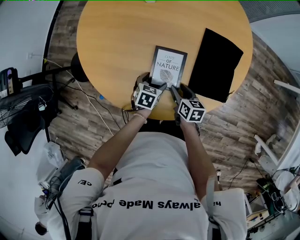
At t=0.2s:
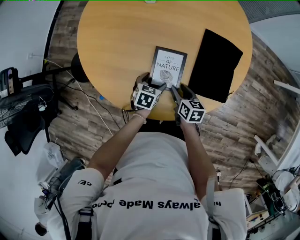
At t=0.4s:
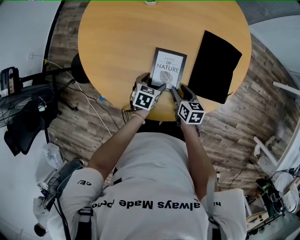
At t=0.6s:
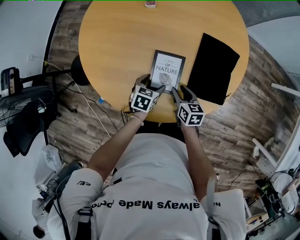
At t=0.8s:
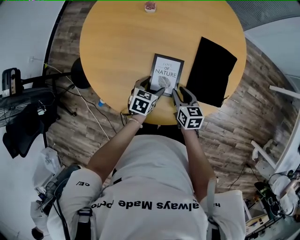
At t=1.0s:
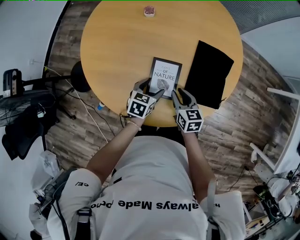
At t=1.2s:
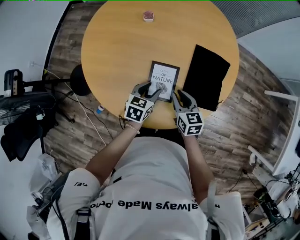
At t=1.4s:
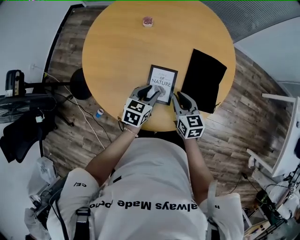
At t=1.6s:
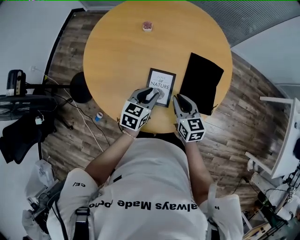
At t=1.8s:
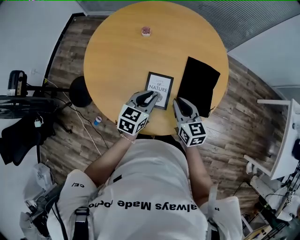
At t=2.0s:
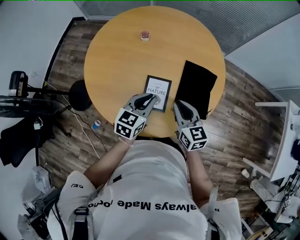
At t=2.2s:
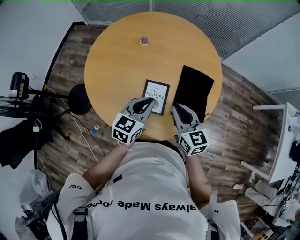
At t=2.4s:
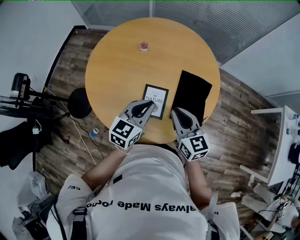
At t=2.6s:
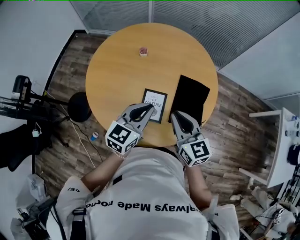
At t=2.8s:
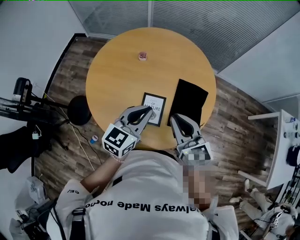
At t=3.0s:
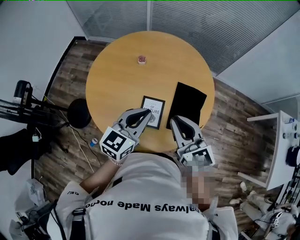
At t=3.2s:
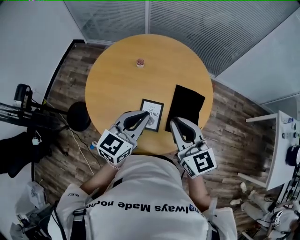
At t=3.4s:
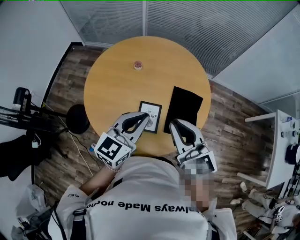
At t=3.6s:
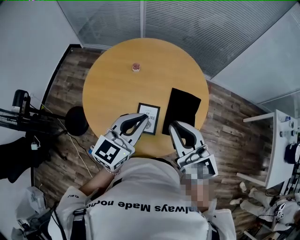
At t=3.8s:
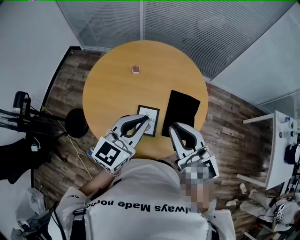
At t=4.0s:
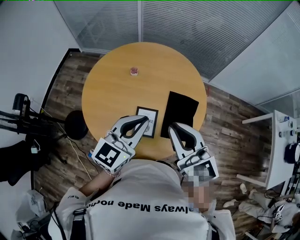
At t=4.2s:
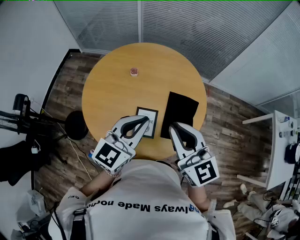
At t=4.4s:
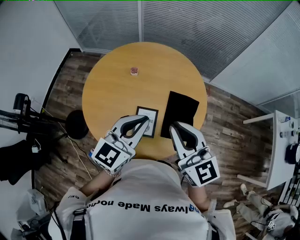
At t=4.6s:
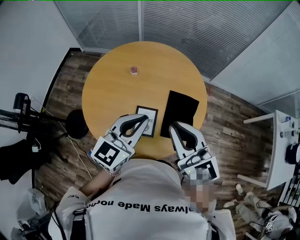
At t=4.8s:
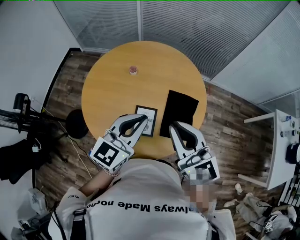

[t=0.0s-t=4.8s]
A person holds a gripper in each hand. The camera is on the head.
t=0.0s to t=1.6s: The grippers both shift upward by roughly 20 cm. The right gripper turns by approximately 30 degrees, and closes its fingers; the left gripper changes its angle by roughly 20 degrees, and closes its fingers.
t=1.6s to t=3.2s: Both grippers travel together upward, roughly 25 cm. The right gripper swivels approximately 20 degrees. The left gripper changes its angle by some 30 degrees.
t=3.2s to t=4.8s: Both grippers move upward, about 5 cm.

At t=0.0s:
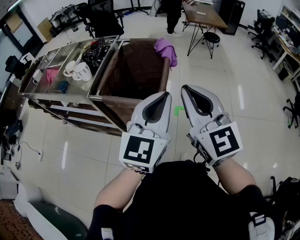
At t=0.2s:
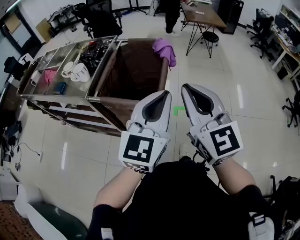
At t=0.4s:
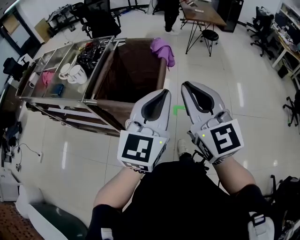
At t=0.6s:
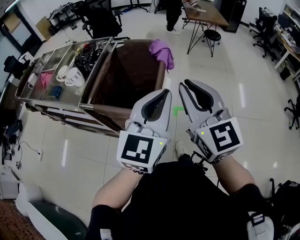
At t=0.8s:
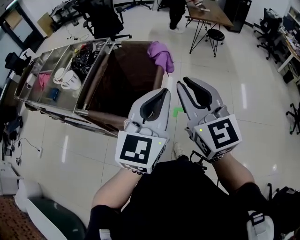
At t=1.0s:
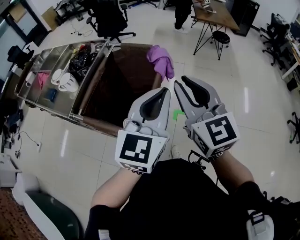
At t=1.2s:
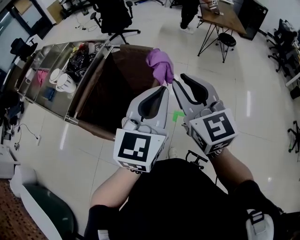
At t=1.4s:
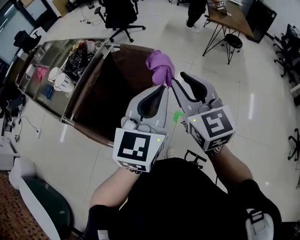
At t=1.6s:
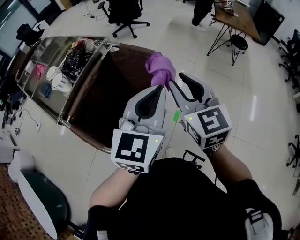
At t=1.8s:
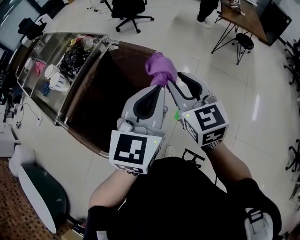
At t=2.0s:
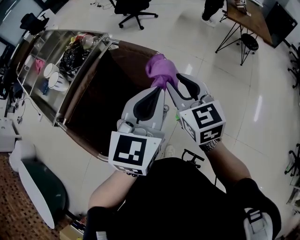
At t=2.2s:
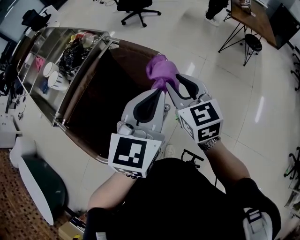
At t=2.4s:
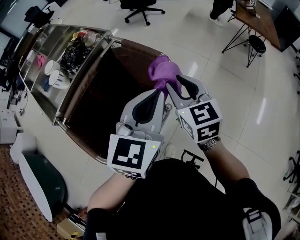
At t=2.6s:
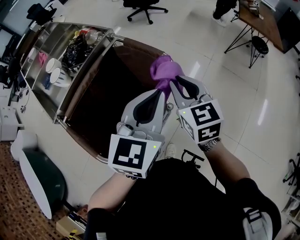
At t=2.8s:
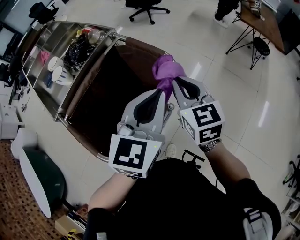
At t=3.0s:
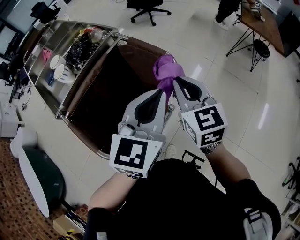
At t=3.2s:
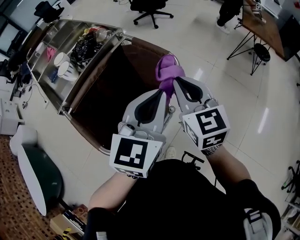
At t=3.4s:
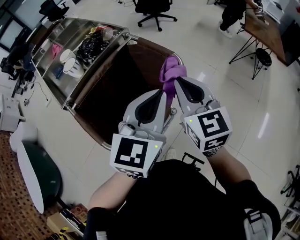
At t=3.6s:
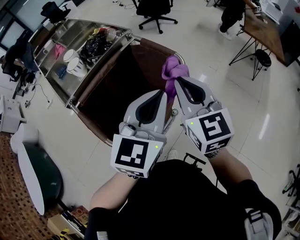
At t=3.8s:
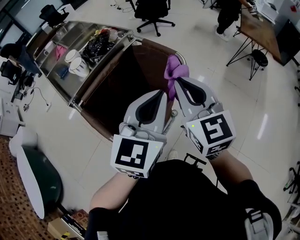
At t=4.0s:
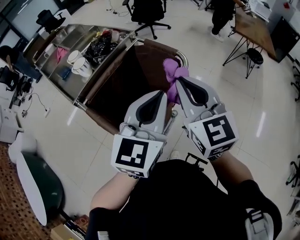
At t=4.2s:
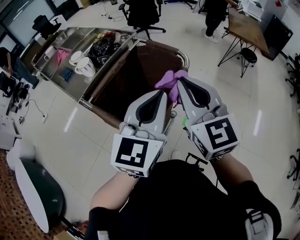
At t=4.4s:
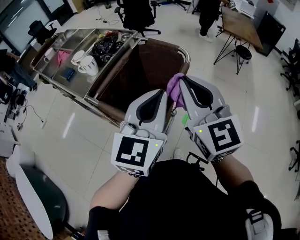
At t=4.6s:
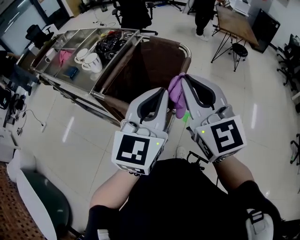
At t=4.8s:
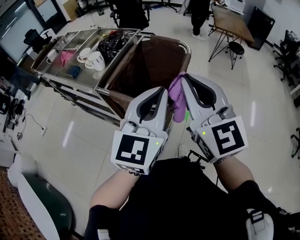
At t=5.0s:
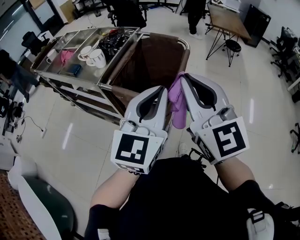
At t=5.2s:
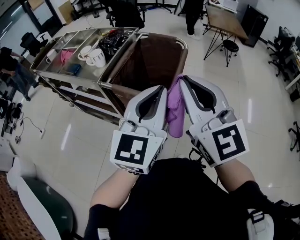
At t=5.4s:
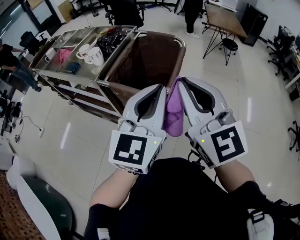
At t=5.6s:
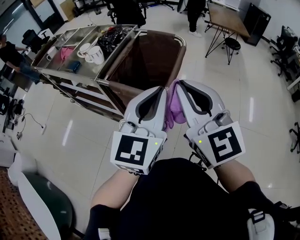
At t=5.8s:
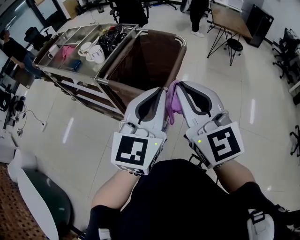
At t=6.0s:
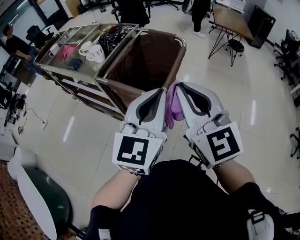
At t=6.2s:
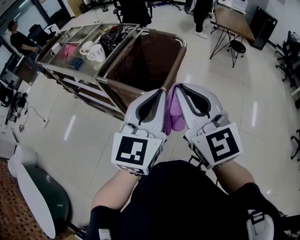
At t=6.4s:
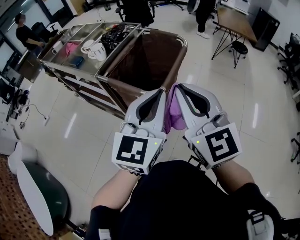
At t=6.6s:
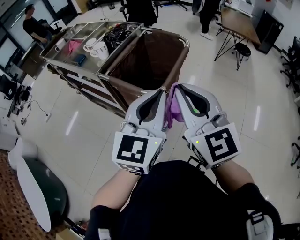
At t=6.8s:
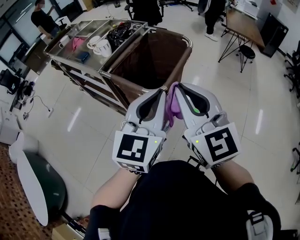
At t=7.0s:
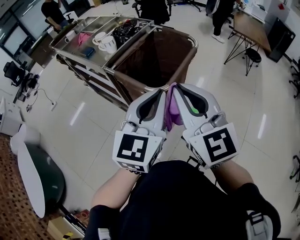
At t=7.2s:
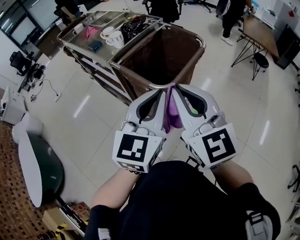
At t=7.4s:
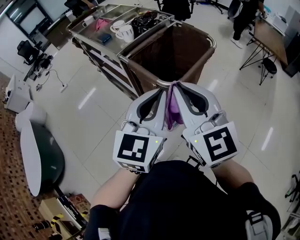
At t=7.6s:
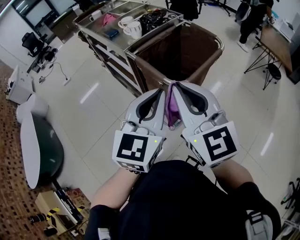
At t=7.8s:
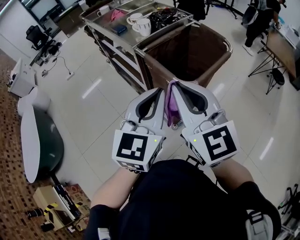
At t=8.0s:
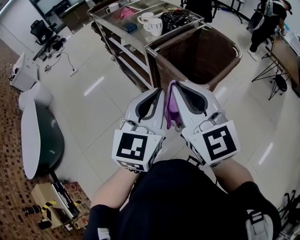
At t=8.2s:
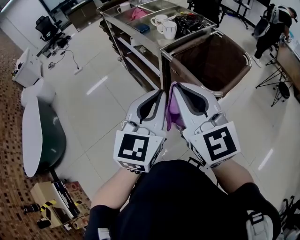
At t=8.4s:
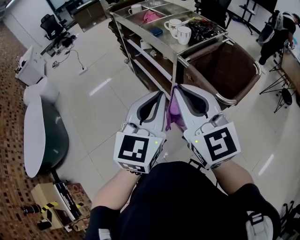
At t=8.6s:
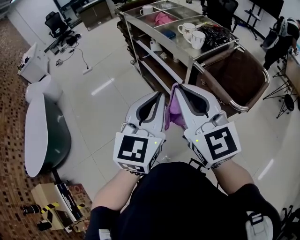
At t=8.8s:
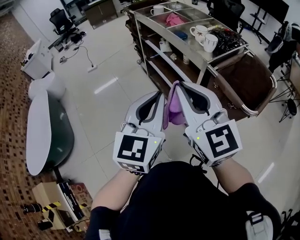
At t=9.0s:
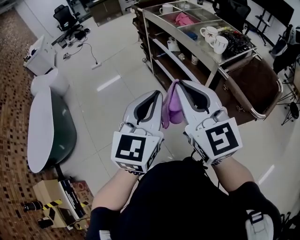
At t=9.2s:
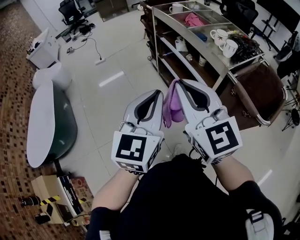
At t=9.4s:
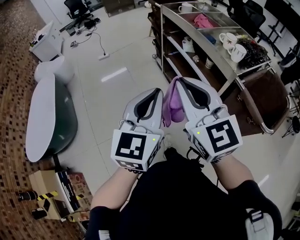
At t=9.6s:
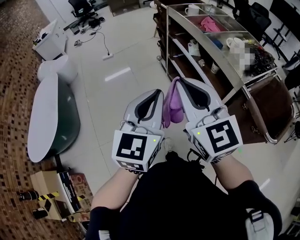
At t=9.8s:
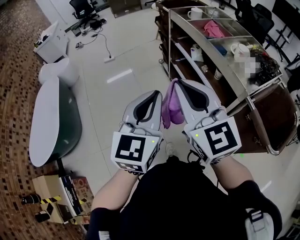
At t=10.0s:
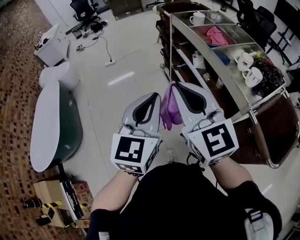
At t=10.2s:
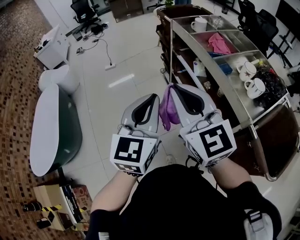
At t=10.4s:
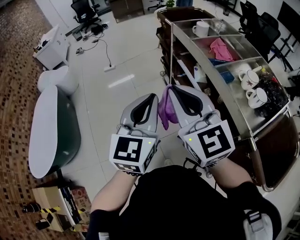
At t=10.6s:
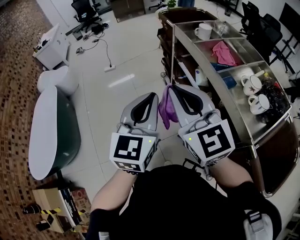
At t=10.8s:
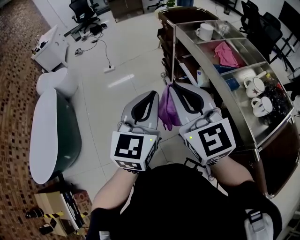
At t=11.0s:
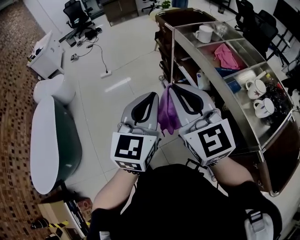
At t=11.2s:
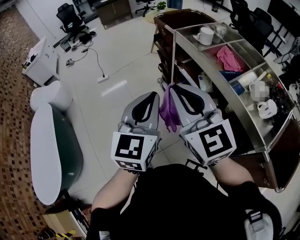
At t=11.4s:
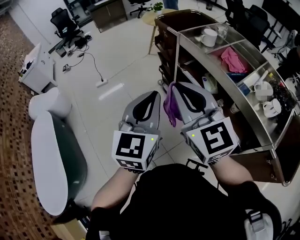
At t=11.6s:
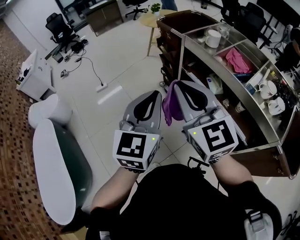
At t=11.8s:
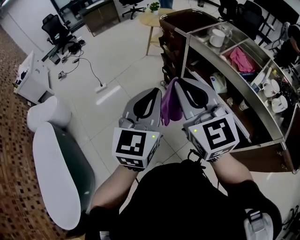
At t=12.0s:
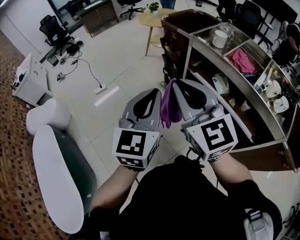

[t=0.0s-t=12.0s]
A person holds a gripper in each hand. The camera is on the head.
t=0.0s to t=1.6s: Both grippers travel together forward, some 30 cm. The right gripper opens.
t=1.6s to t=3.0s: The left gripper is displaced downward and forward by roughly 10 cm. The right gripper goes approximately 10 cm forward and downward, and closes.
t=3.0s to t=4.4s: Both grippers move backward, upward and to the left, roughly 25 cm. The left gripper rotates approximately 20 degrees.
t=4.4s to t=6.0s: The two grippers go roughly 15 cm backward.
t=6.0s to t=7.6s: The right gripper swivels approximately 30 degrees.
t=7.6s to t=9.0s: The grippers both shift to the left by roughly 35 cm.
t=9.0s to t=10.4s: Both grippers move forward, about 30 cm.
t=10.4s to t=12.0s: Both grippers travel together to the left and forward, some 30 cm. The right gripper turns by approximately 20 degrees.

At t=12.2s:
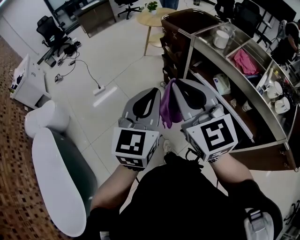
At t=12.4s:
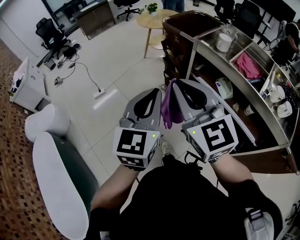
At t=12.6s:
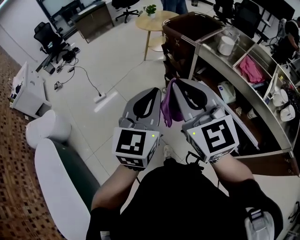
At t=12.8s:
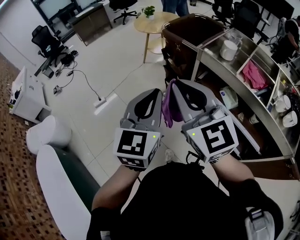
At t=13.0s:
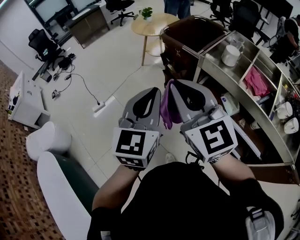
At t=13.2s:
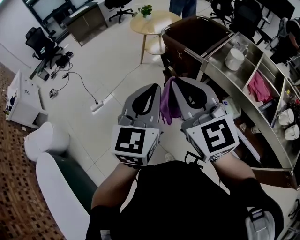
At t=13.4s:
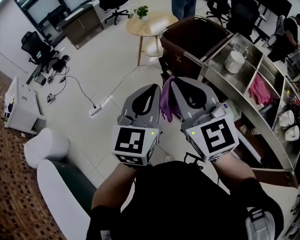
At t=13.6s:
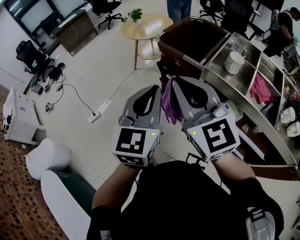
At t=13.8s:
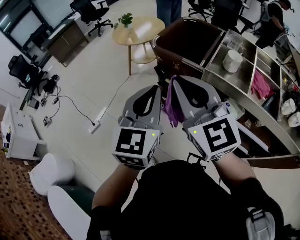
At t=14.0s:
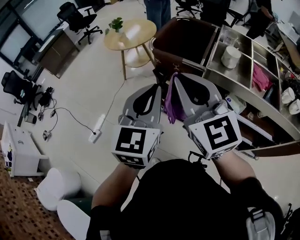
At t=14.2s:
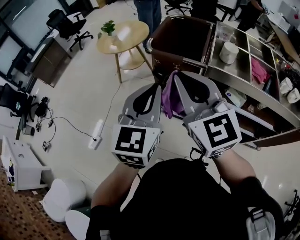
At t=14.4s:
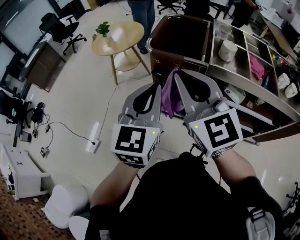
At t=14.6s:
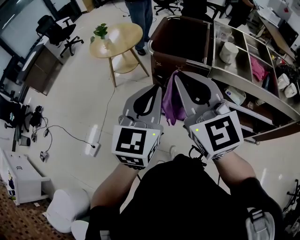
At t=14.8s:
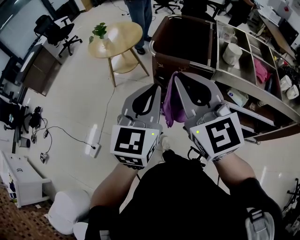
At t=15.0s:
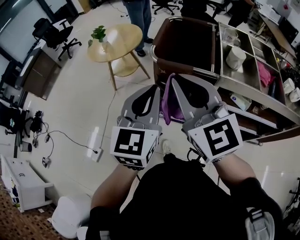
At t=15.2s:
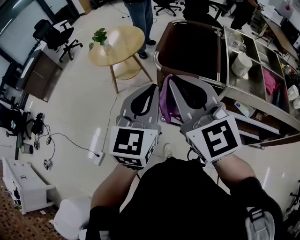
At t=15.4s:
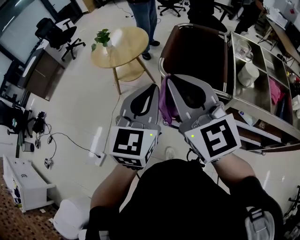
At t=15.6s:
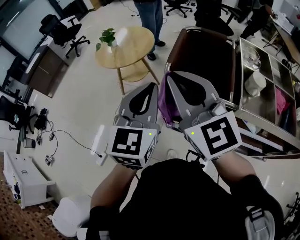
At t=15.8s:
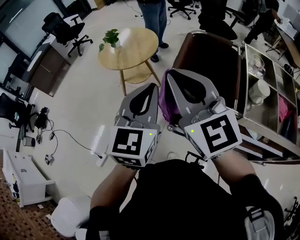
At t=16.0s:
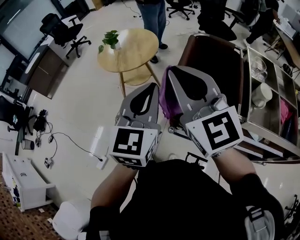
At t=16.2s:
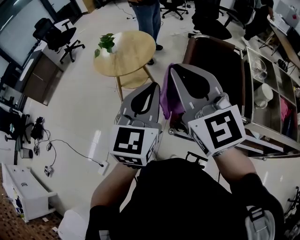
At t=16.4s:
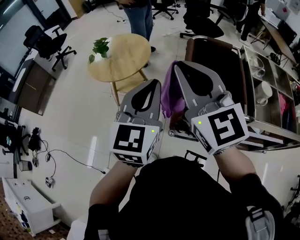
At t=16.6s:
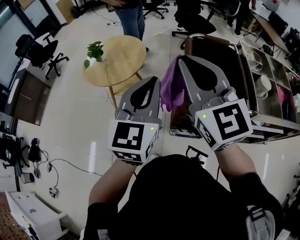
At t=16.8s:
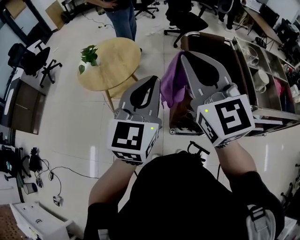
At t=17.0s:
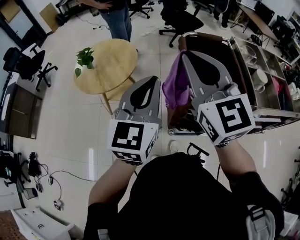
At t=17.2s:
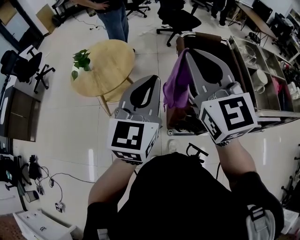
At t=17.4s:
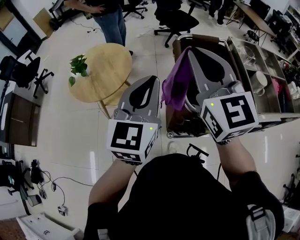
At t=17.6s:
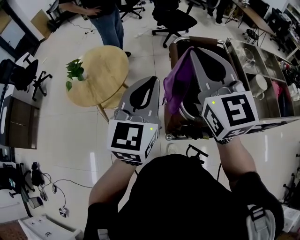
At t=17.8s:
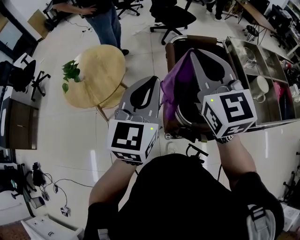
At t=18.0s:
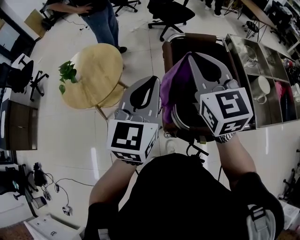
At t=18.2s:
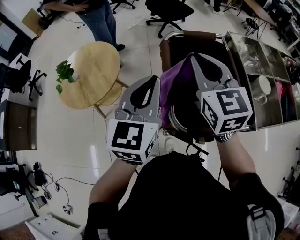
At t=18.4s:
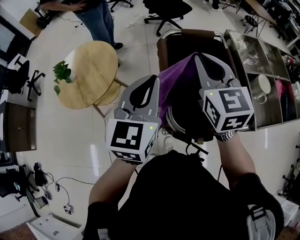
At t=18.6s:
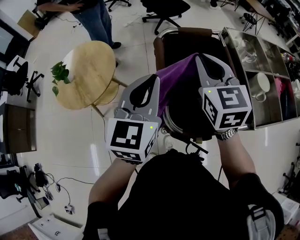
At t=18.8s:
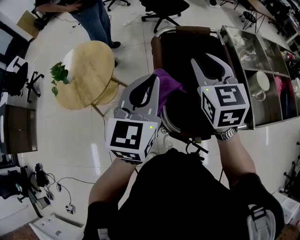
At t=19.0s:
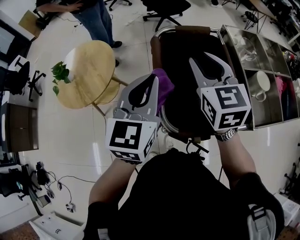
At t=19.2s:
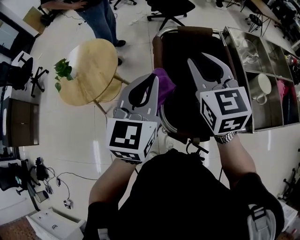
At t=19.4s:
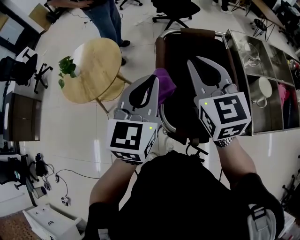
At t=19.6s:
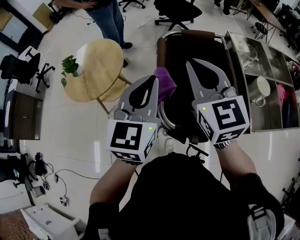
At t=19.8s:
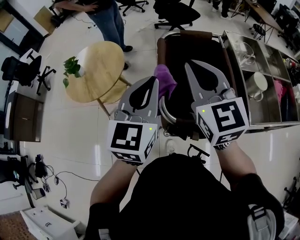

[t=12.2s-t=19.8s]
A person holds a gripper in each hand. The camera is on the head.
t=12.2s to t=13.8s: Both grippers travel together forward, approximately 30 cm.
t=13.8s to t=15.2s: The grippers both shift forward and to the left by about 20 cm.
t=15.2s to t=16.8s: The left gripper shifts some 30 cm forward and to the left. The right gripper is displaced forward, to the left and upward by roughly 30 cm.
t=16.8s to t=18.2s: Both grippers move forward and to the right, approximately 25 cm. The right gripper rotates roughly 20 degrees.
t=18.2s to t=19.8s: The right gripper moves backward, approximately 10 cm, and opens and closes again; the left gripper travels to the right and backward by some 10 cm.
